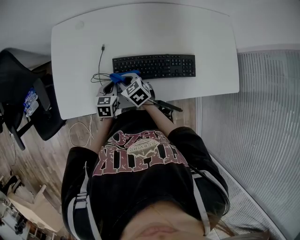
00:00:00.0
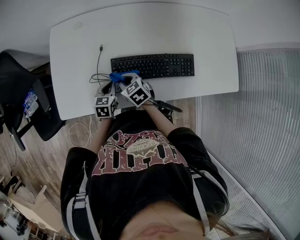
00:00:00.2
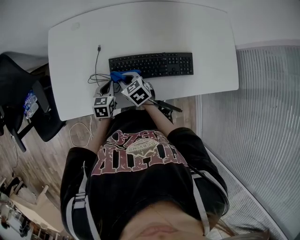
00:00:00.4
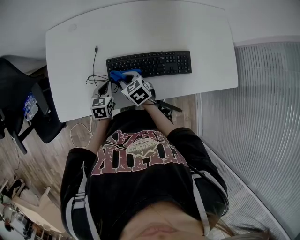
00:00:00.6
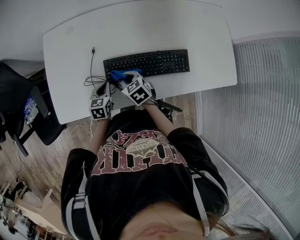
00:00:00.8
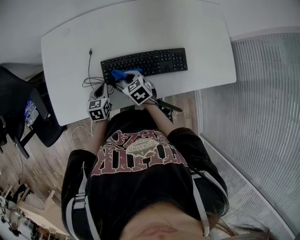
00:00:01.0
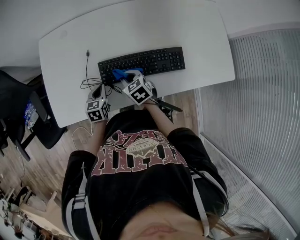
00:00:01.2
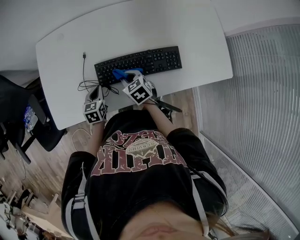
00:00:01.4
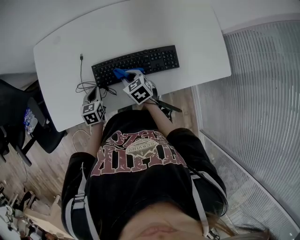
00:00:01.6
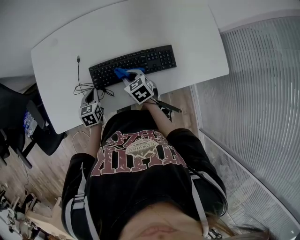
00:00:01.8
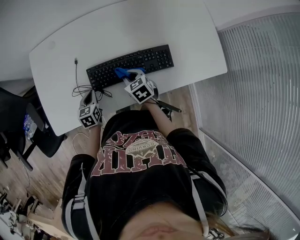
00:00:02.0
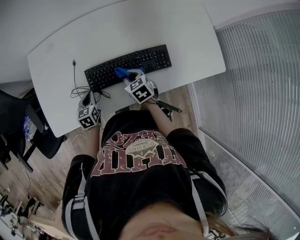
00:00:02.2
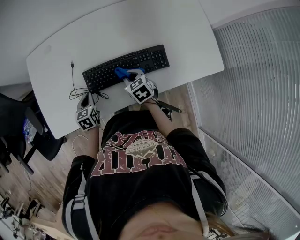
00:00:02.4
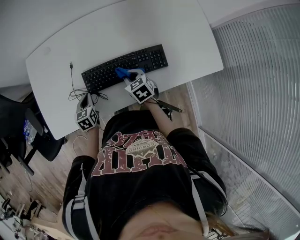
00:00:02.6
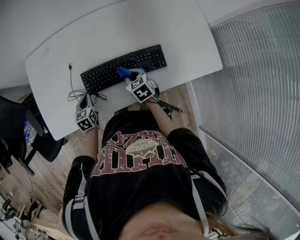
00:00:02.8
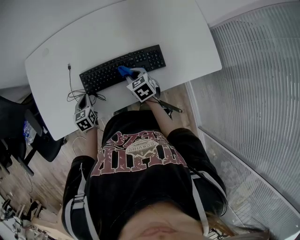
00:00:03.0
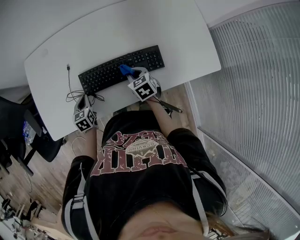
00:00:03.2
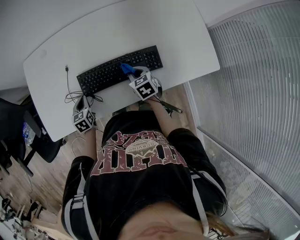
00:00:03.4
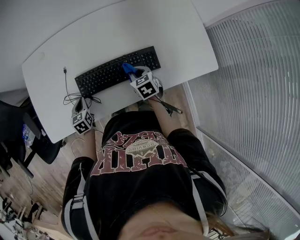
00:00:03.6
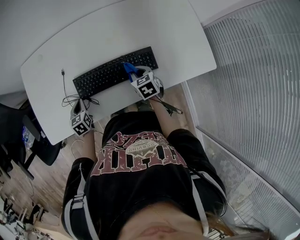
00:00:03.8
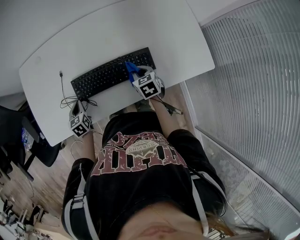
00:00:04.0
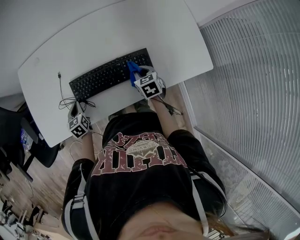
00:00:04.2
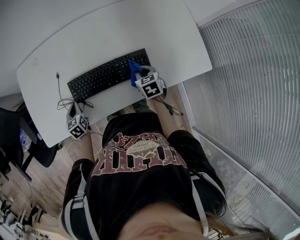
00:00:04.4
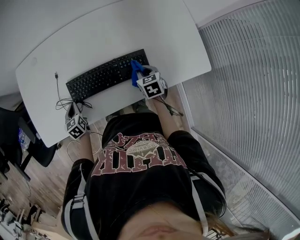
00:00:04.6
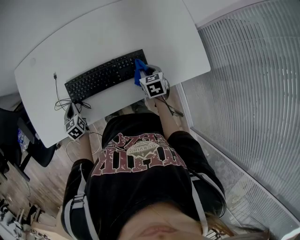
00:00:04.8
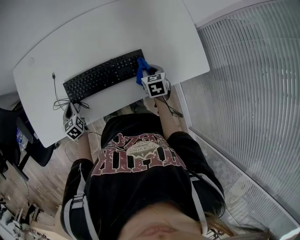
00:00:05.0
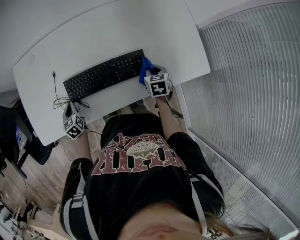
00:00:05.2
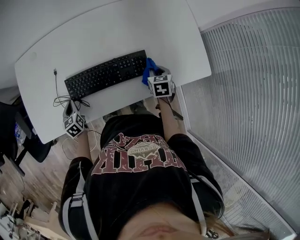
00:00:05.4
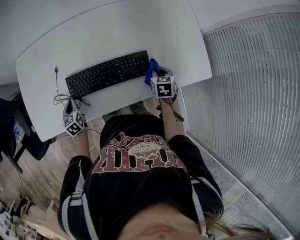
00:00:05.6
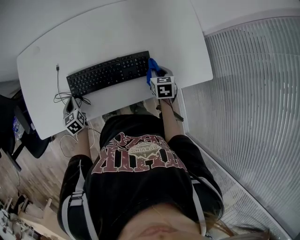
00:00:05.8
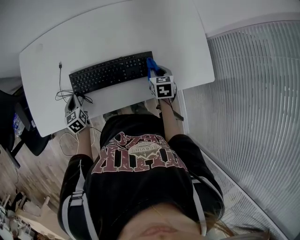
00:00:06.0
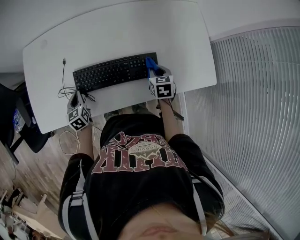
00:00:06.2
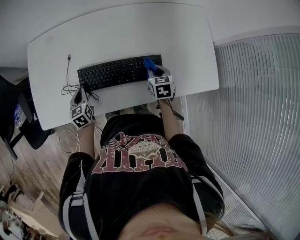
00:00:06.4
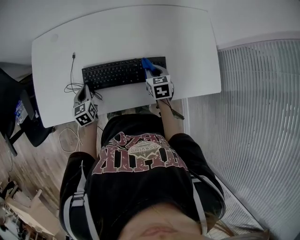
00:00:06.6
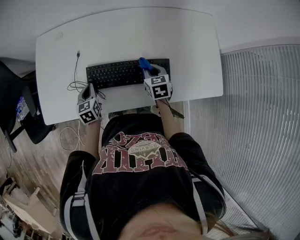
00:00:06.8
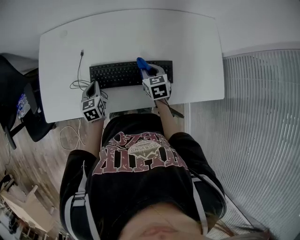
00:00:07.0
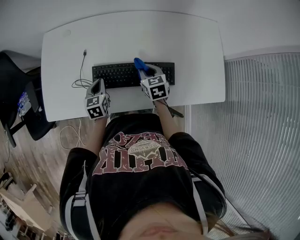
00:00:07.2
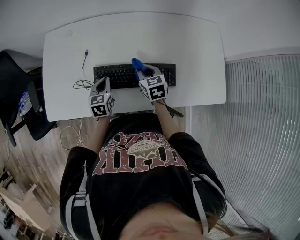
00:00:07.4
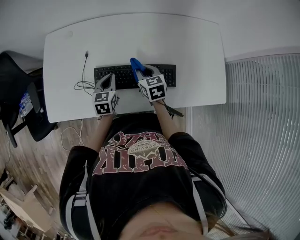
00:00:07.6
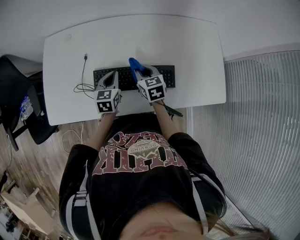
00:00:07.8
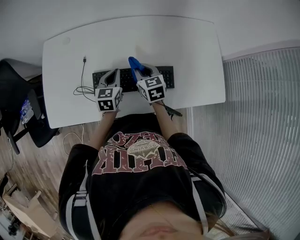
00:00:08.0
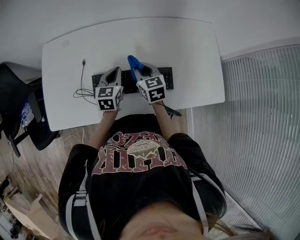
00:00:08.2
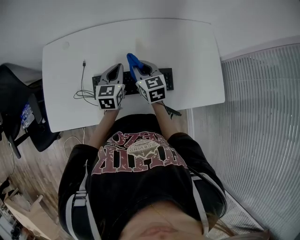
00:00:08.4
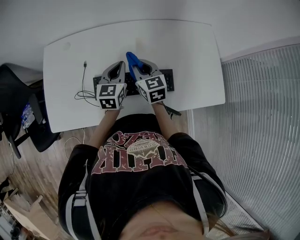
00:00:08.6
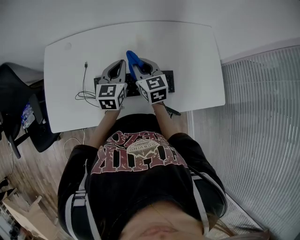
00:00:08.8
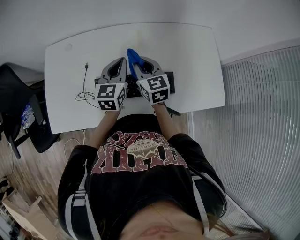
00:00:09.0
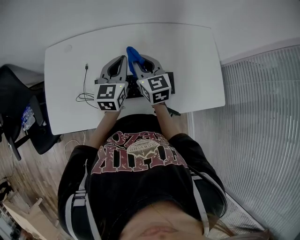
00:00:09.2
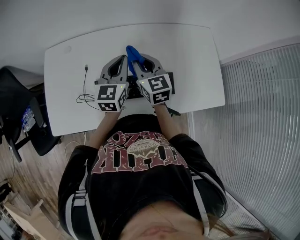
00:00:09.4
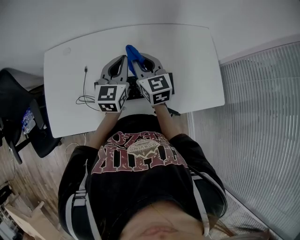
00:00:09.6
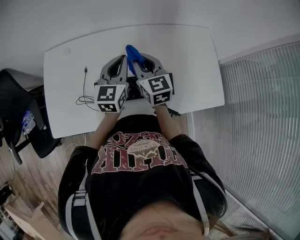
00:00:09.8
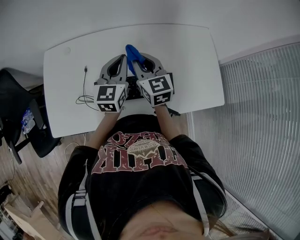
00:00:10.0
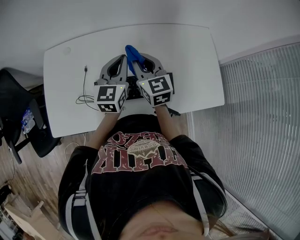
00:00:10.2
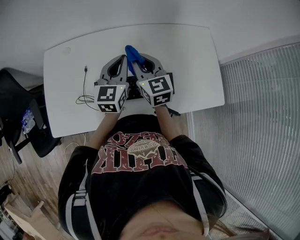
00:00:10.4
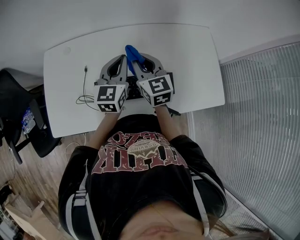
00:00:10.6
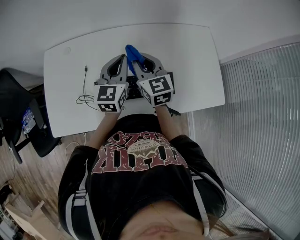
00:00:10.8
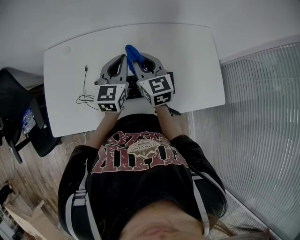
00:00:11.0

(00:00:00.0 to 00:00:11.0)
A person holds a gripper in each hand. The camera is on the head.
00:00:00.0 - 00:00:01.6: The right gripper goes about 10 cm to the right.
00:00:01.6 - 00:00:03.2: The right gripper moves to the right, approximately 10 cm.
00:00:03.2 - 00:00:04.8: The right gripper goes approximately 15 cm to the right.
00:00:04.8 - 00:00:06.2: The grippers make only small movements.
00:00:06.2 - 00:00:07.8: The right gripper shifts some 20 cm to the left, forward and upward, and changes its angle by some 20 degrees. Meanwhile the left gripper goes approximately 15 cm to the right and upward.
00:00:07.8 - 00:00:09.4: Both grippers travel together upward, some 15 cm. The left gripper changes its angle by approximately 20 degrees. The right gripper swivels roughly 20 degrees.
00:00:09.4 - 00:00:11.0: There are only small adjustments of the grippers.

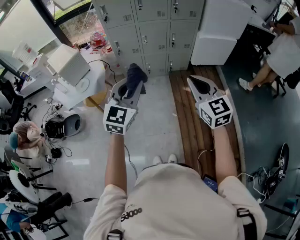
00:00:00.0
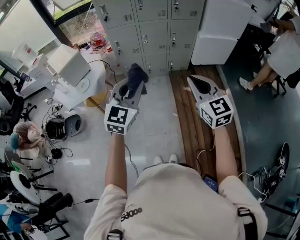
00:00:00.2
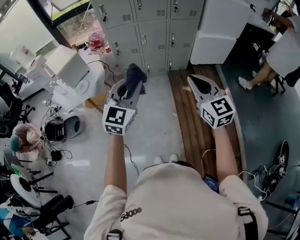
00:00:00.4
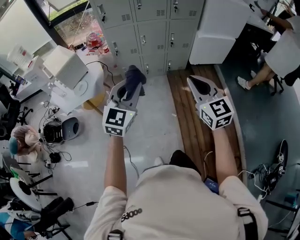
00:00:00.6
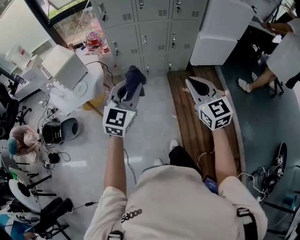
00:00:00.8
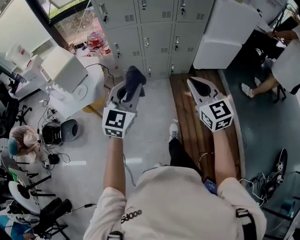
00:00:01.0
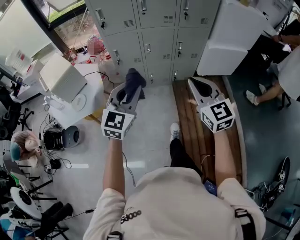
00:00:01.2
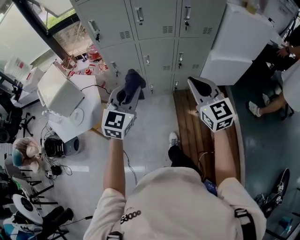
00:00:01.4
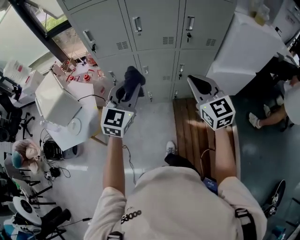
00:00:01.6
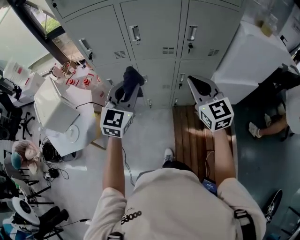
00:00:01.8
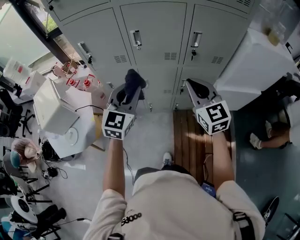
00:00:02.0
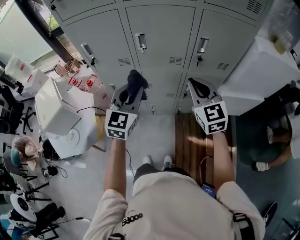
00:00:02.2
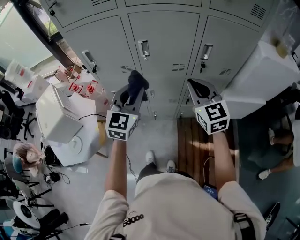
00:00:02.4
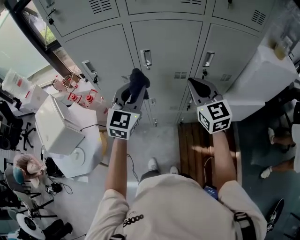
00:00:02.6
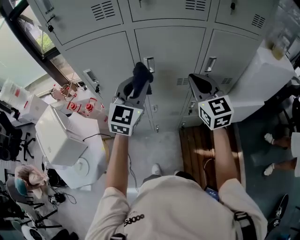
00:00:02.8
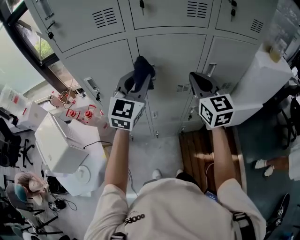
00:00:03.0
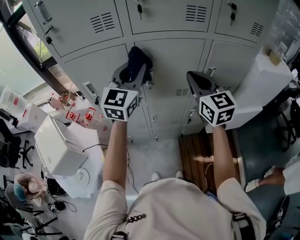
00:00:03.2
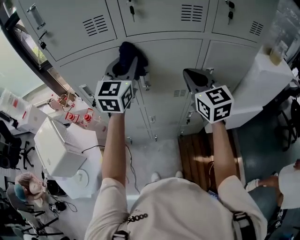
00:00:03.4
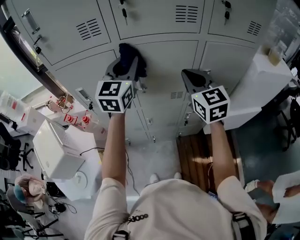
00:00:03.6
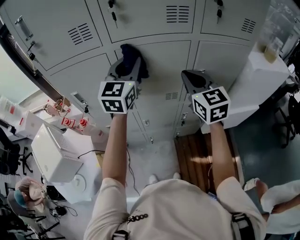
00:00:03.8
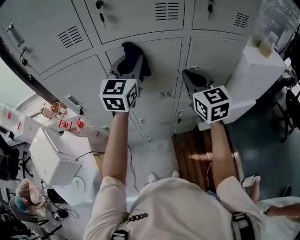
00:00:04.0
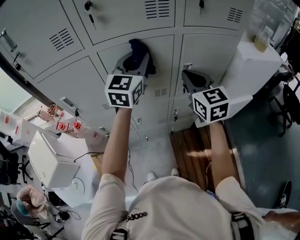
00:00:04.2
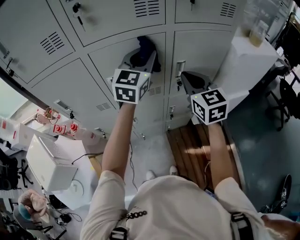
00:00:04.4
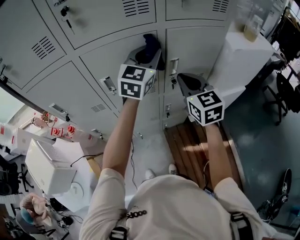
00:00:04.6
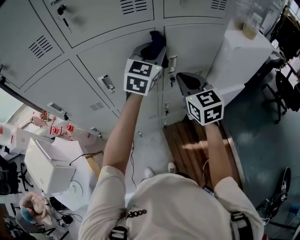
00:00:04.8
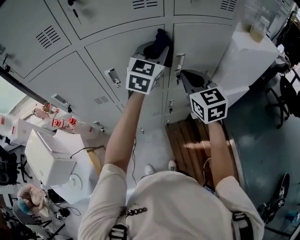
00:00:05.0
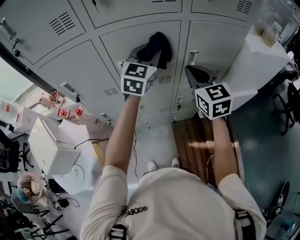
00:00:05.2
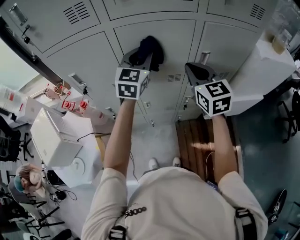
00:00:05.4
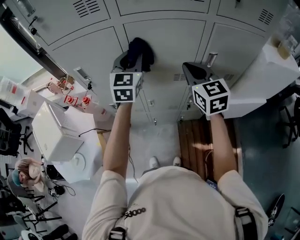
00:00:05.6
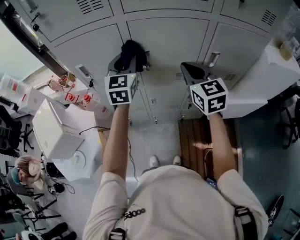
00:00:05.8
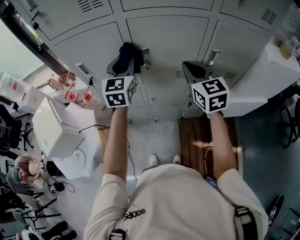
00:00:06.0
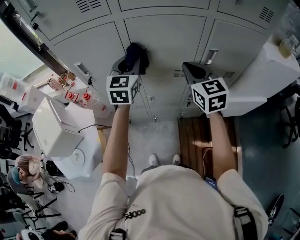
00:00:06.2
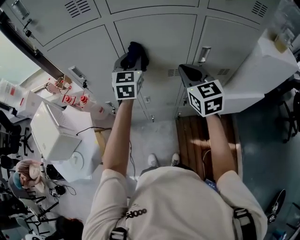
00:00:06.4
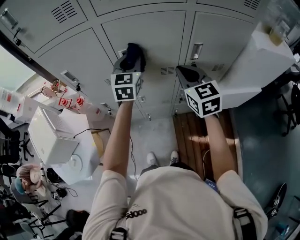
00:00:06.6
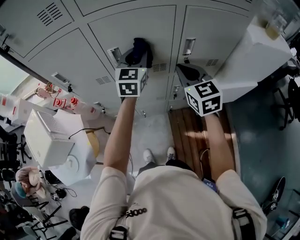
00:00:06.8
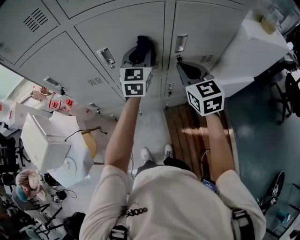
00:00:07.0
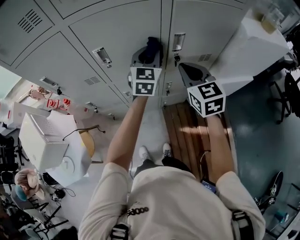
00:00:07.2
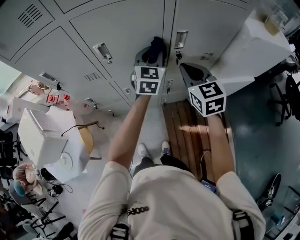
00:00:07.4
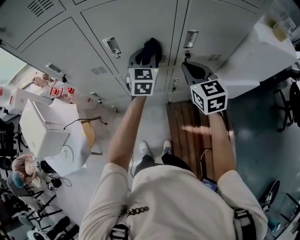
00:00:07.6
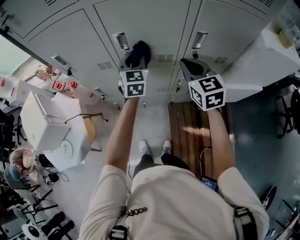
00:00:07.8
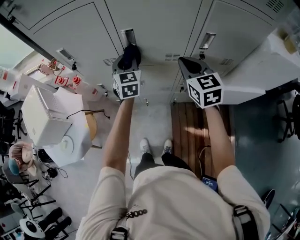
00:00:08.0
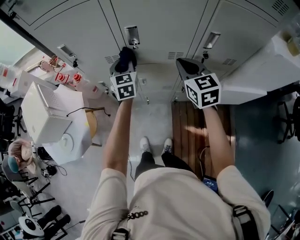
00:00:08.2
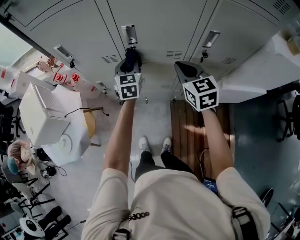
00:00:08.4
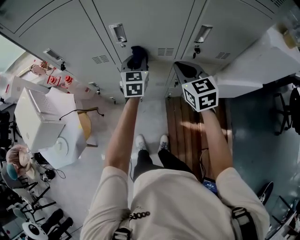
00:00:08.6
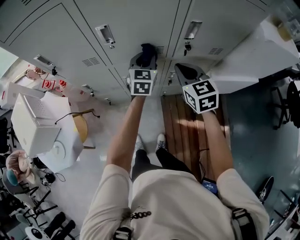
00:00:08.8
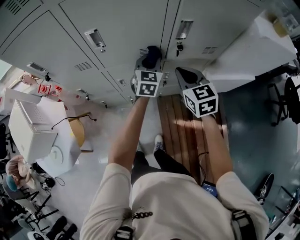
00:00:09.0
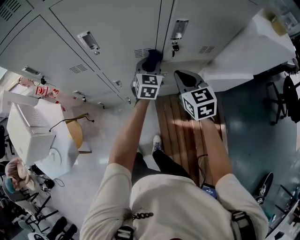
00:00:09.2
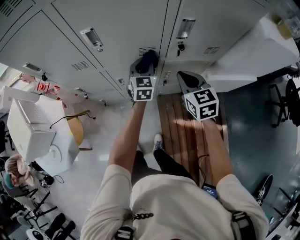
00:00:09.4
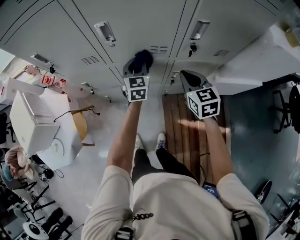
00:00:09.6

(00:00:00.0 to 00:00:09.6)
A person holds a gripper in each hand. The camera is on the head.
00:00:00.0 - 00:00:01.6: The pair of grippers is taken forward, roughly 40 cm.
00:00:01.6 - 00:00:03.2: The left gripper goes some 35 cm forward and upward; the right gripper shifts approximately 30 cm forward.
00:00:03.2 - 00:00:04.8: The right gripper goes approximately 15 cm to the right and downward, while the left gripper is displaced to the right by about 25 cm.
00:00:04.8 - 00:00:06.4: The right gripper travels to the left by some 10 cm, while the left gripper shifts approximately 25 cm to the left and downward, and rotates approximately 30 degrees.
00:00:06.4 - 00:00:08.0: The left gripper goes roughly 10 cm downward, and goes to the right and returns, roughly 20 cm each way. Meanwhile the right gripper heads downward, covering some 5 cm, and reaches some 10 cm to the right, then returns.
00:00:08.0 - 00:00:09.6: The grippers both shift downward and to the right by roughly 15 cm.

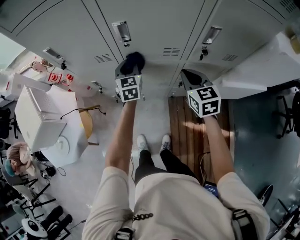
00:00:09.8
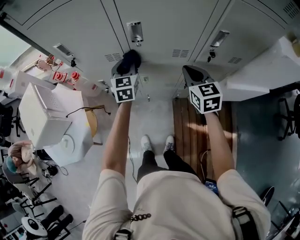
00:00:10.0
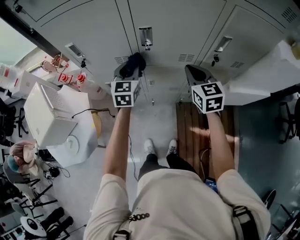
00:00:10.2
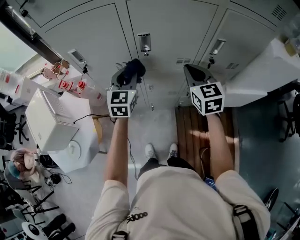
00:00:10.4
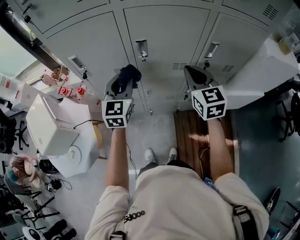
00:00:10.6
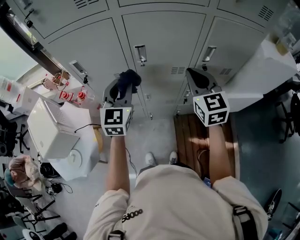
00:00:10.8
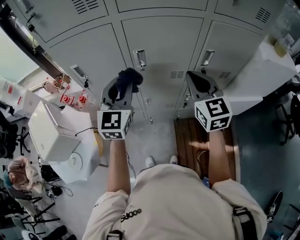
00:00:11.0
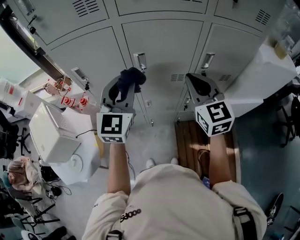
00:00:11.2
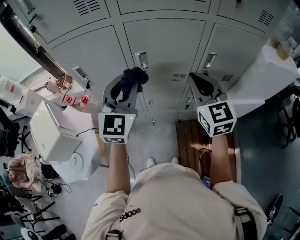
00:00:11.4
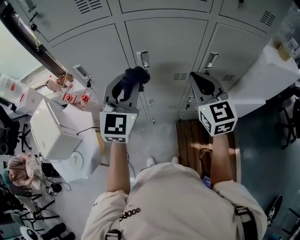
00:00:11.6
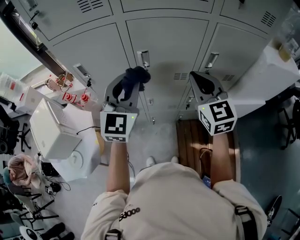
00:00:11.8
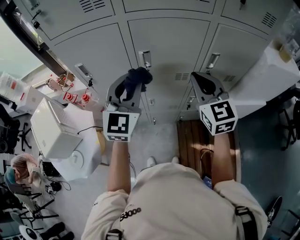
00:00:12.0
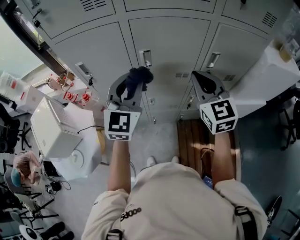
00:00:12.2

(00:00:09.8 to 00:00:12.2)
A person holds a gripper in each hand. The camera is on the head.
00:00:09.8 - 00:00:11.0: The right gripper heads upward, covering some 20 cm. Meanwhile the left gripper goes roughly 25 cm upward and backward, and rotates roughly 20 degrees.
00:00:11.0 - 00:00:12.2: The grippers make only small movements.
